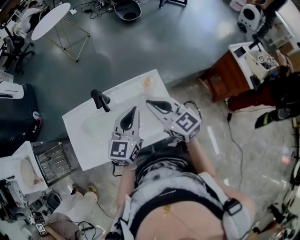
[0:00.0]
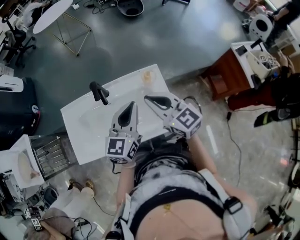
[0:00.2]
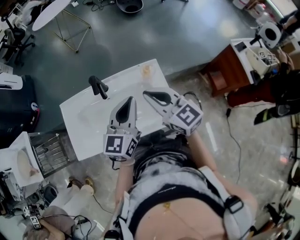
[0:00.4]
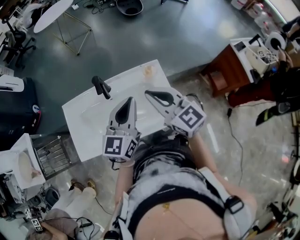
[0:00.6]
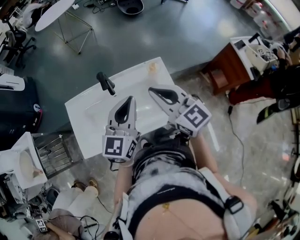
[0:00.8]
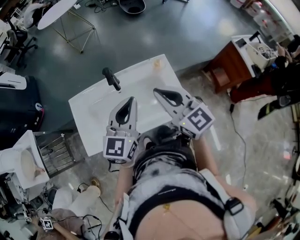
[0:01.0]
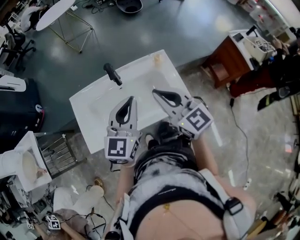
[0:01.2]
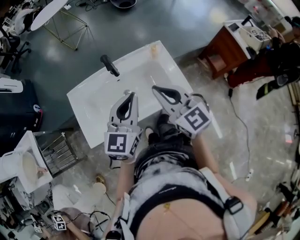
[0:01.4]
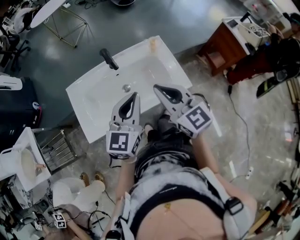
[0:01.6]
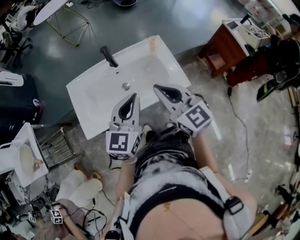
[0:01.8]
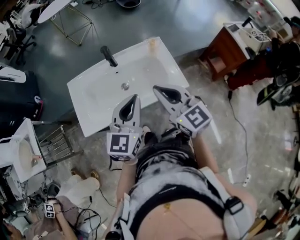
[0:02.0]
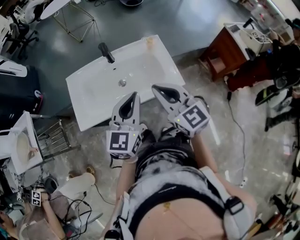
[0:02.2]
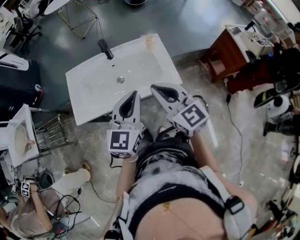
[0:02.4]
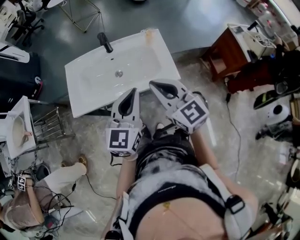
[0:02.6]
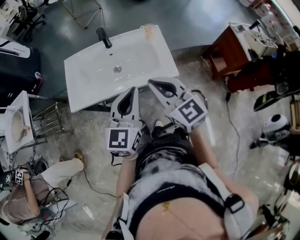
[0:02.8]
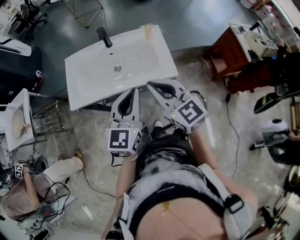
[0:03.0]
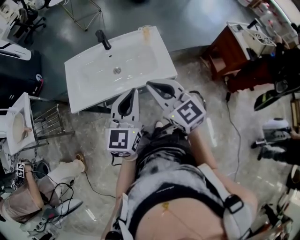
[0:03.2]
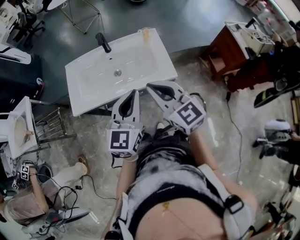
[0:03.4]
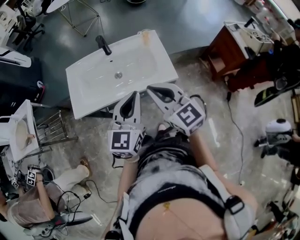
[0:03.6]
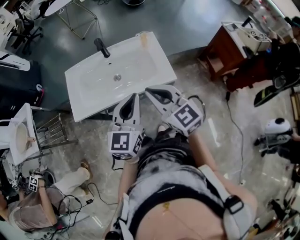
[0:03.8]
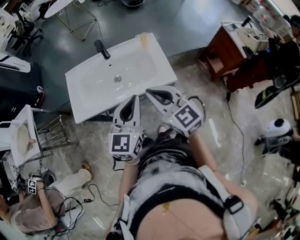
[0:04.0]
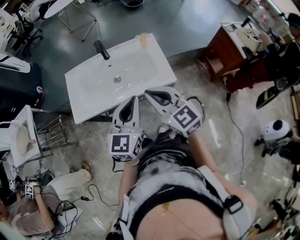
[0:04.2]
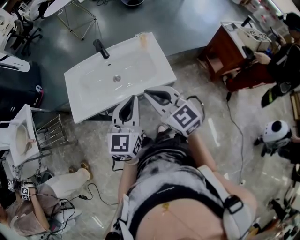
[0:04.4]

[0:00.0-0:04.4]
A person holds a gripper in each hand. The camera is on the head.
0:00.0 to 0:01.4: Both grippers move backward and to the left, some 15 cm.
0:01.4 to 0:03.0: The left gripper travels backward and to the right by approximately 20 cm. The right gripper travels backward by roughly 15 cm.
0:03.0 to 0:04.4: Both grippers stay put.

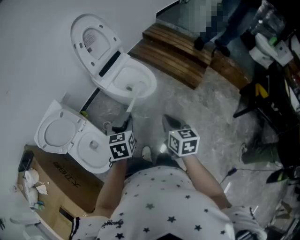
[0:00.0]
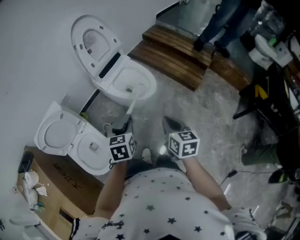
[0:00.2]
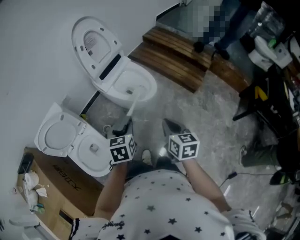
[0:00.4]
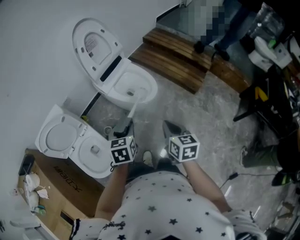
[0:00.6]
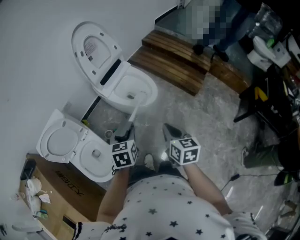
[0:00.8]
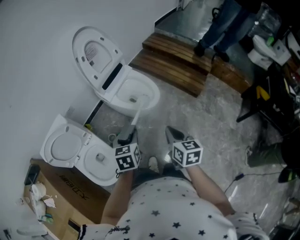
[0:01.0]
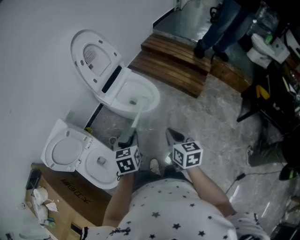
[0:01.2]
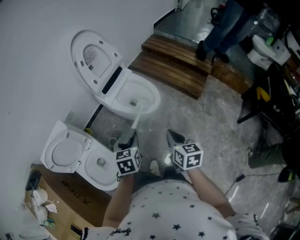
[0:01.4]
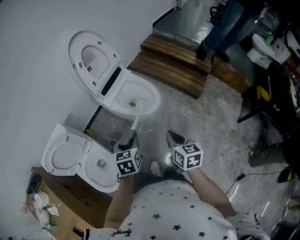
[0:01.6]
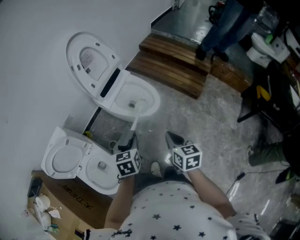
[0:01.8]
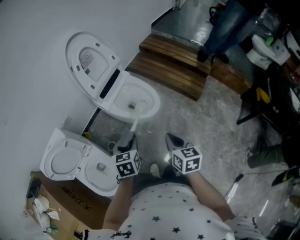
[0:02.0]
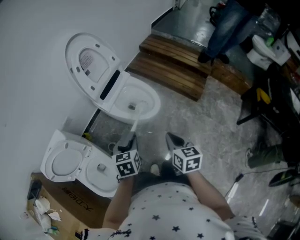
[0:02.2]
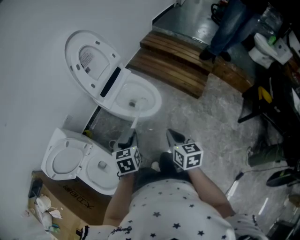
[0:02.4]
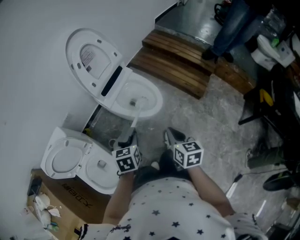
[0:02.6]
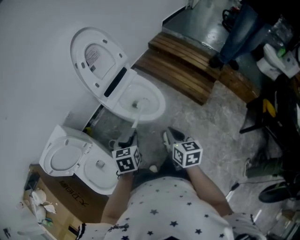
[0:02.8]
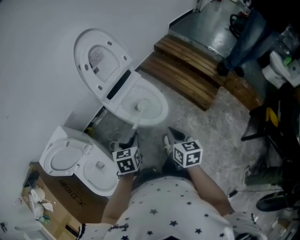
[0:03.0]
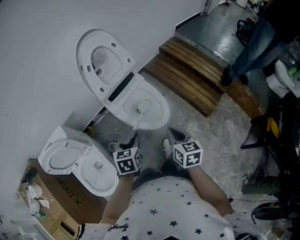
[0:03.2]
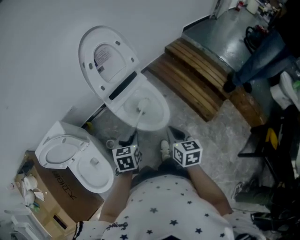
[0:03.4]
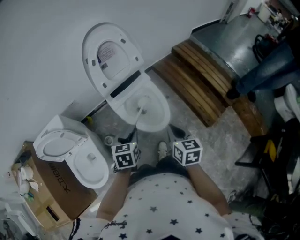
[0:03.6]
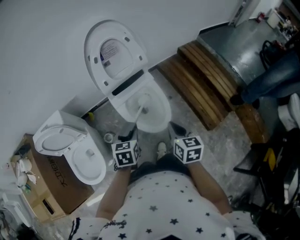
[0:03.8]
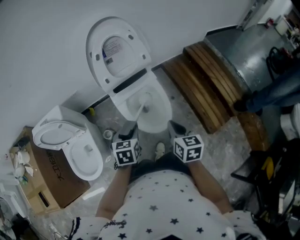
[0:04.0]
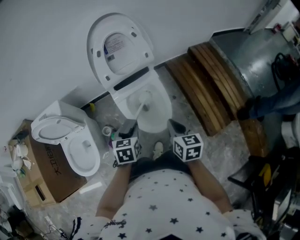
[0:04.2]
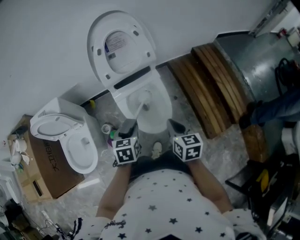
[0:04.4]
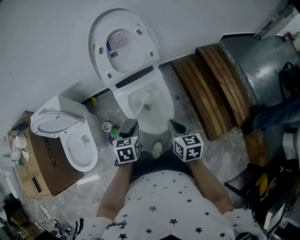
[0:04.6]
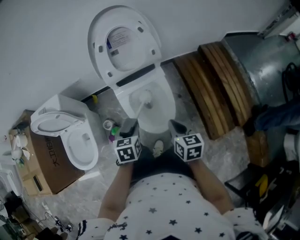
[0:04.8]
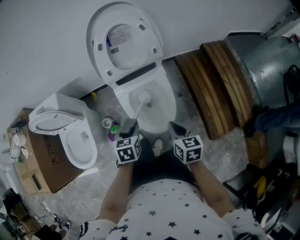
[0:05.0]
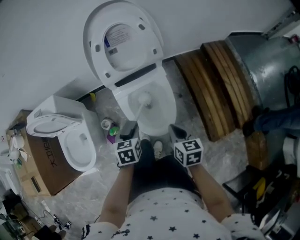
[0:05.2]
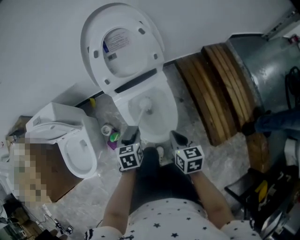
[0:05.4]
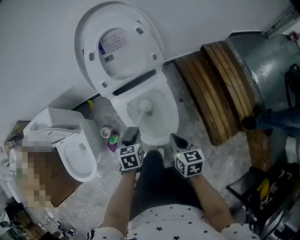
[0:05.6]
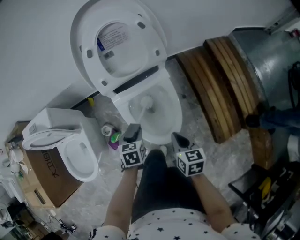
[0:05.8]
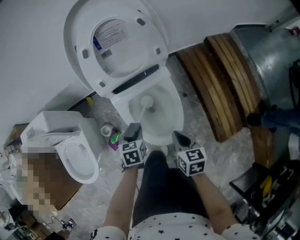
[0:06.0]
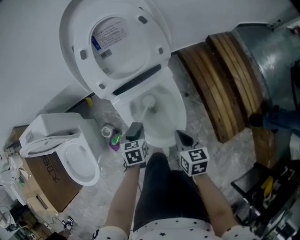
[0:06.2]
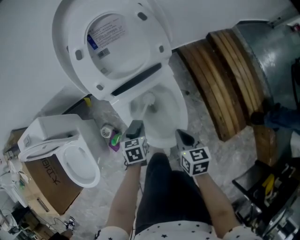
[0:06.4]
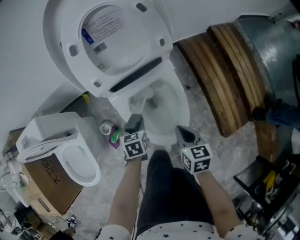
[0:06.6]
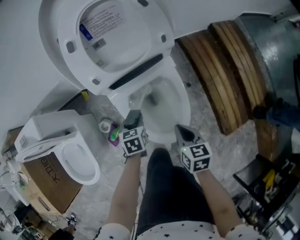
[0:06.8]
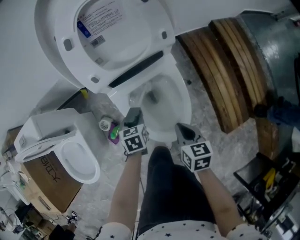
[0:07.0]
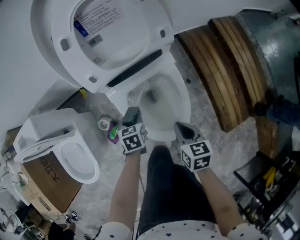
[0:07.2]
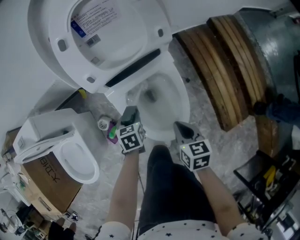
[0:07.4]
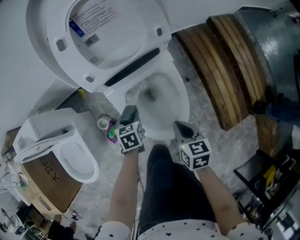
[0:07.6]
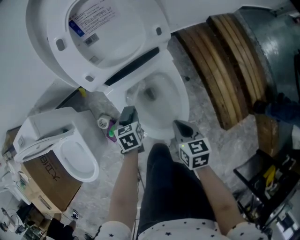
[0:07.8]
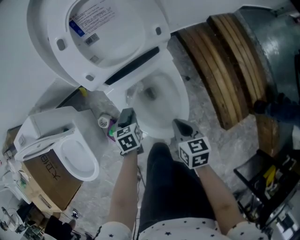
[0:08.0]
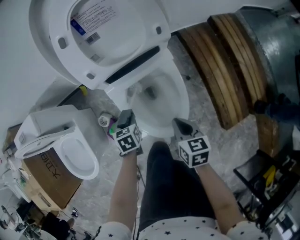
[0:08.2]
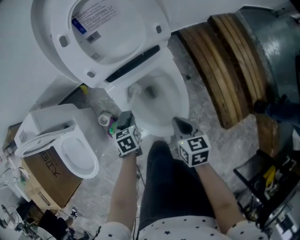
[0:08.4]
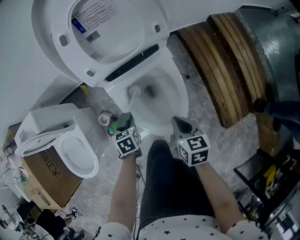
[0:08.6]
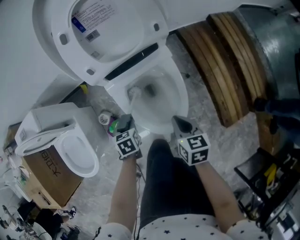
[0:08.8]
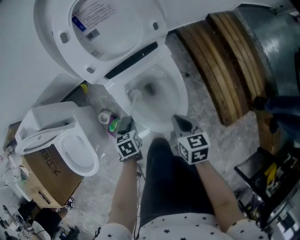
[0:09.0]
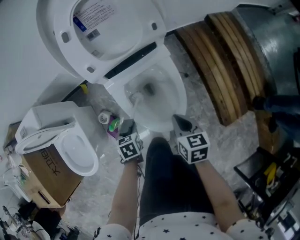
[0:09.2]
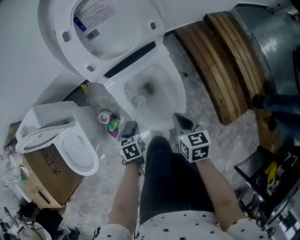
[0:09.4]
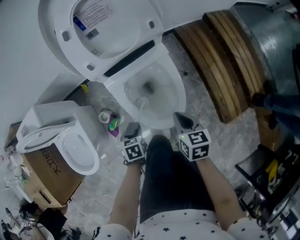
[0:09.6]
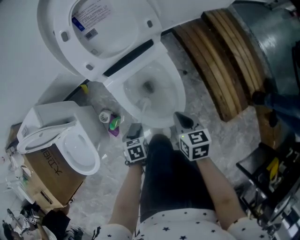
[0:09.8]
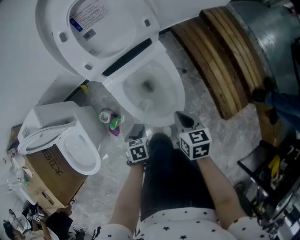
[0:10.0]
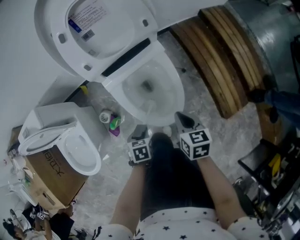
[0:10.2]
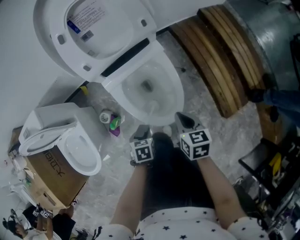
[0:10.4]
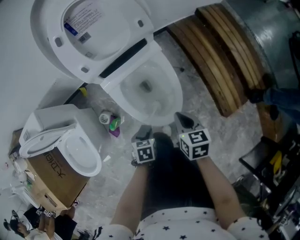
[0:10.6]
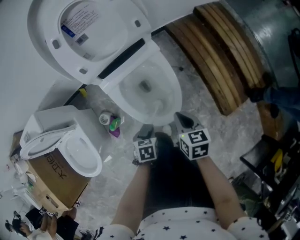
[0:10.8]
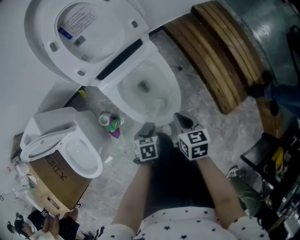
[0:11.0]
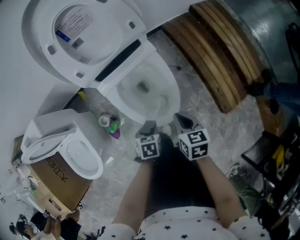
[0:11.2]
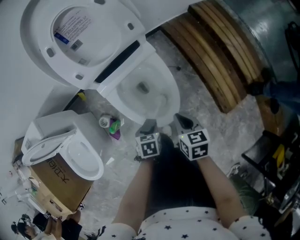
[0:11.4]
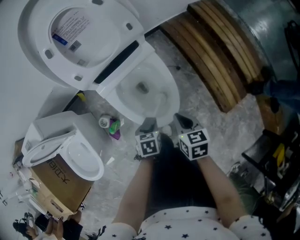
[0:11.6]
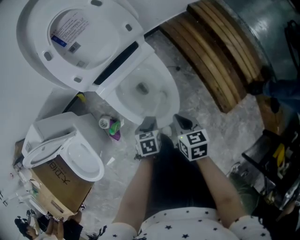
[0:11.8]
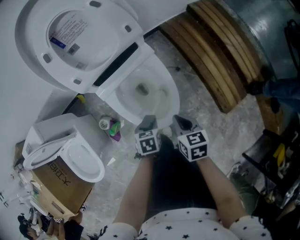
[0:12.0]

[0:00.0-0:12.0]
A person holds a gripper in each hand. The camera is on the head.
0:00.0 to 0:01.6: The left gripper changes place by about 5 cm.
0:01.6 to 0:03.0: Both grippers move forward, roughly 10 cm.
0:03.0 to 0:04.4: The left gripper ends up about 15 cm from where it was, and rotates about 20 degrees. The right gripper moves about 20 cm, and rotates roughly 30 degrees.
0:04.4 to 0:06.0: The two grippers go approximately 20 cm downward and forward.
0:06.0 to 0:07.6: The left gripper heads downward and forward, covering about 10 cm. Meanwhile the right gripper moves downward, about 5 cm.
0:07.6 to 0:09.0: The left gripper heads backward, covering about 10 cm.
0:09.0 to 0:10.4: The left gripper travels backward and to the right by approximately 10 cm.
0:10.4 to 0:12.0: The left gripper shifts roughly 10 cm forward and to the right.

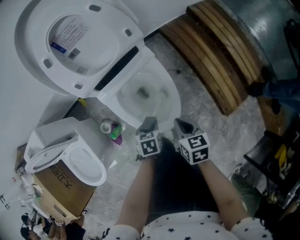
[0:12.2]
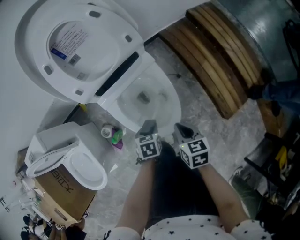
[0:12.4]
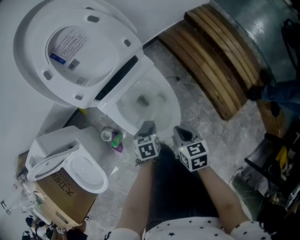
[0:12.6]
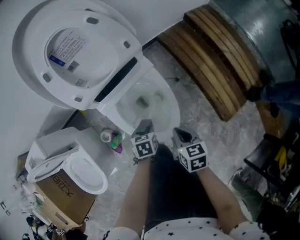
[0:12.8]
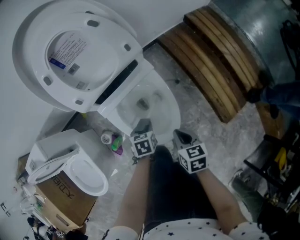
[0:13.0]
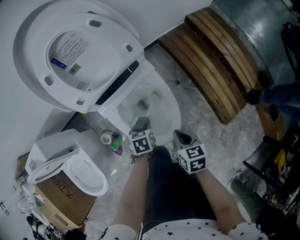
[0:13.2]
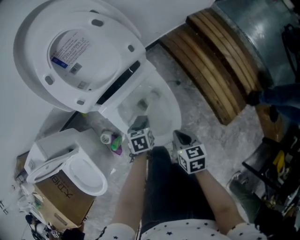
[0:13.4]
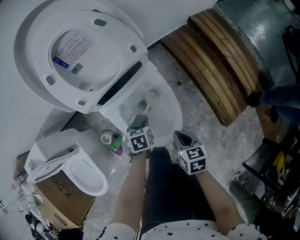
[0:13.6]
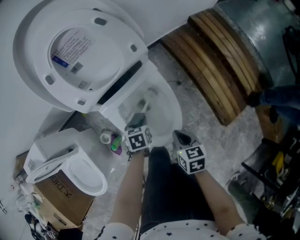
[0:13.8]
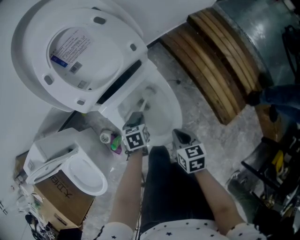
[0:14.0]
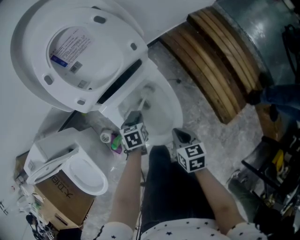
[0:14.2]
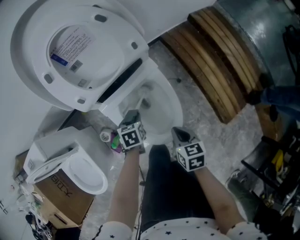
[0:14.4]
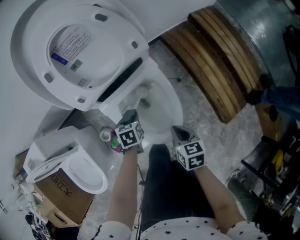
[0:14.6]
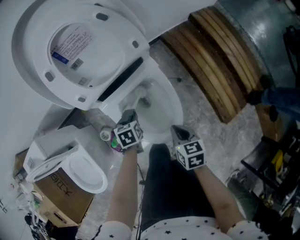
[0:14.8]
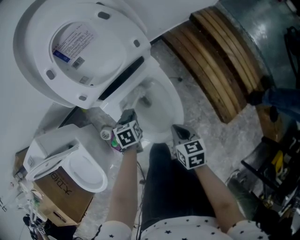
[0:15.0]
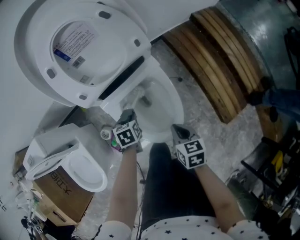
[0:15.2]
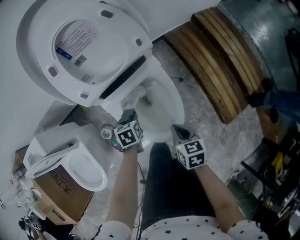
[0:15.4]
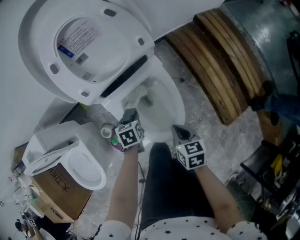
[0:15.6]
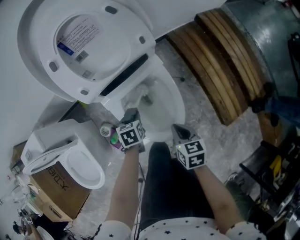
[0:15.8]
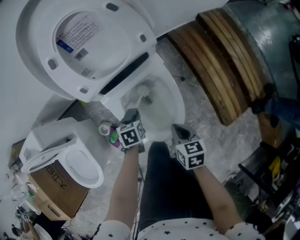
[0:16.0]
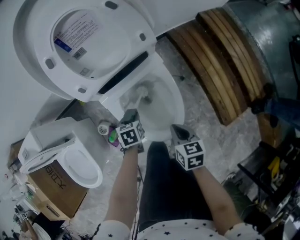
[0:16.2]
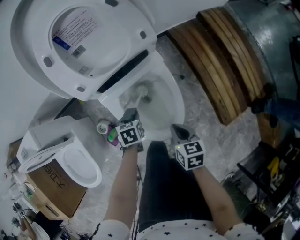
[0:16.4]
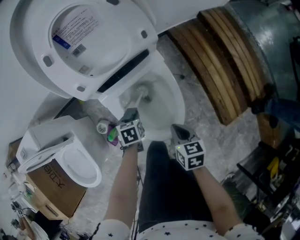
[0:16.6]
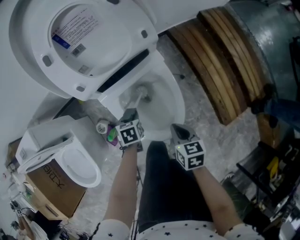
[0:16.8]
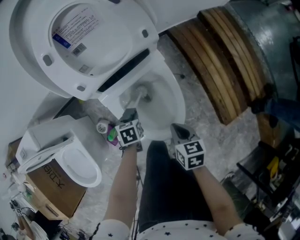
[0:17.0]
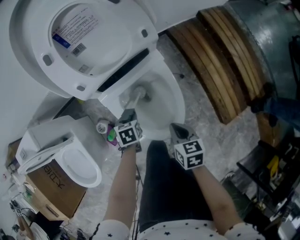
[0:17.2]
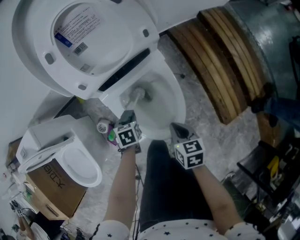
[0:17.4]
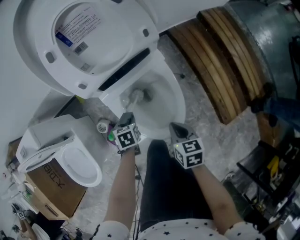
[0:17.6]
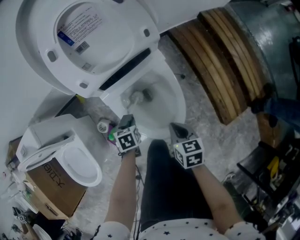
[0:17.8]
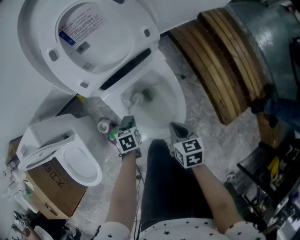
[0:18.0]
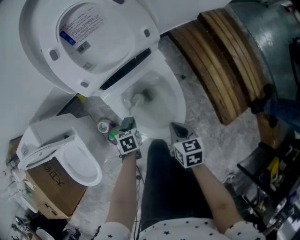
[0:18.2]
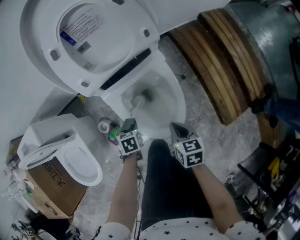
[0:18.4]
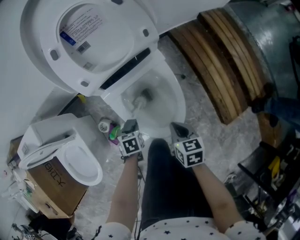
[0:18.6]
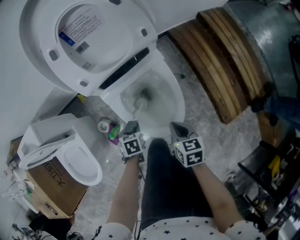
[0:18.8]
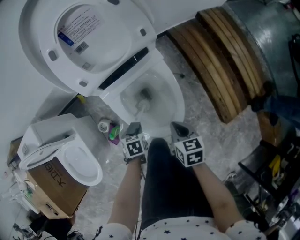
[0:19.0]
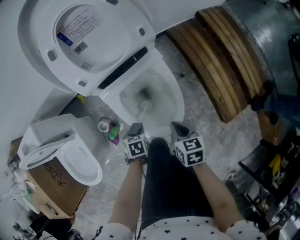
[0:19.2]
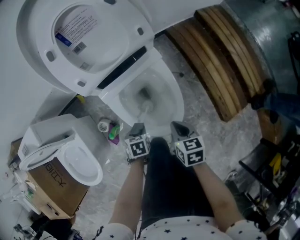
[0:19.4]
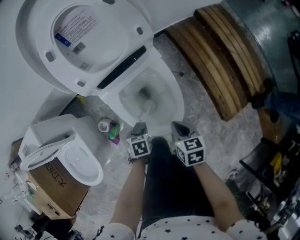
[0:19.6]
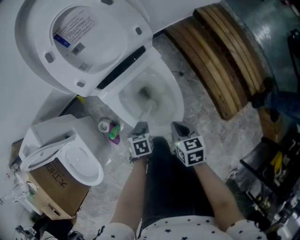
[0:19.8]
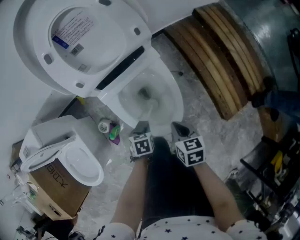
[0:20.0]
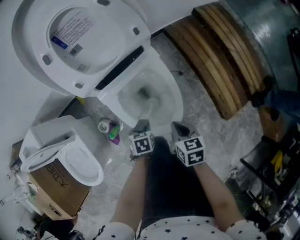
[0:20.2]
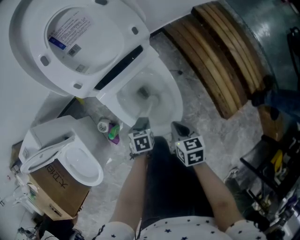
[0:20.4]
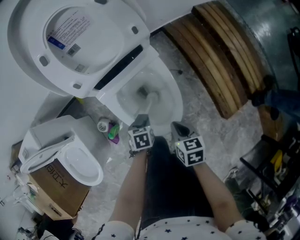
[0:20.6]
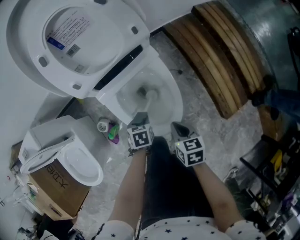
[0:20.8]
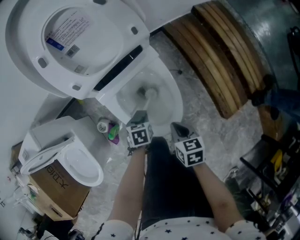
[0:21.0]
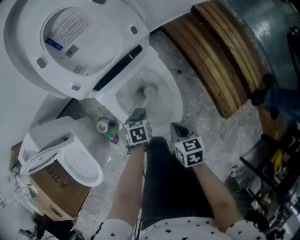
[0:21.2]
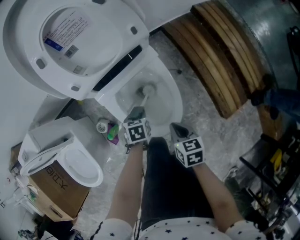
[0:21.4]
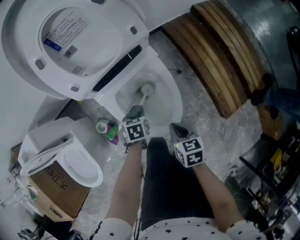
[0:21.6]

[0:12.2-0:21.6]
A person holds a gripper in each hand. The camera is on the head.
0:12.2 to 0:13.8: The left gripper moves forward, some 10 cm.
0:13.8 to 0:15.4: The left gripper shifts roughly 5 cm to the left.
0:15.4 to 0:17.0: The left gripper moves about 5 cm.
0:17.0 to 0:18.4: The left gripper shifts about 5 cm backward.
0:18.4 to 0:20.0: The left gripper shifts by approximately 10 cm.
0:20.0 to 0:21.6: The left gripper moves forward, roughly 10 cm.
